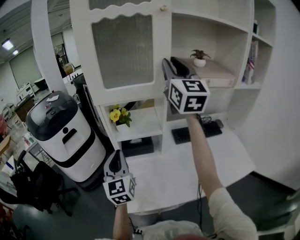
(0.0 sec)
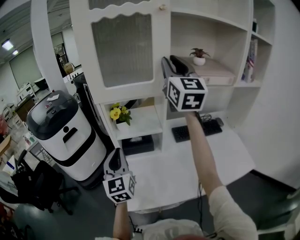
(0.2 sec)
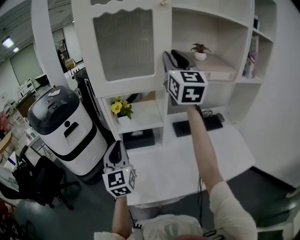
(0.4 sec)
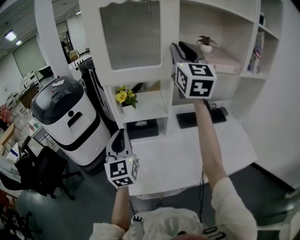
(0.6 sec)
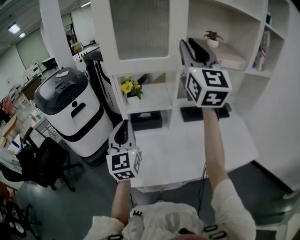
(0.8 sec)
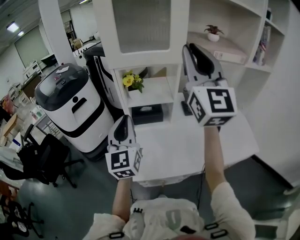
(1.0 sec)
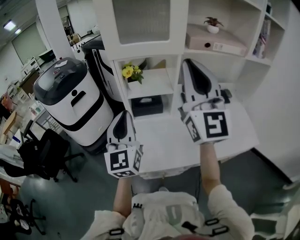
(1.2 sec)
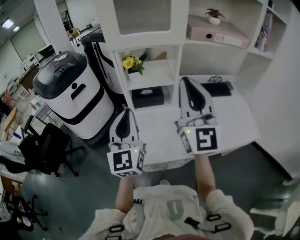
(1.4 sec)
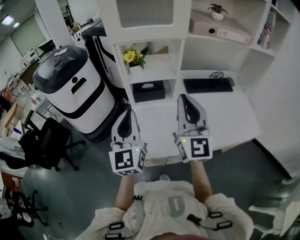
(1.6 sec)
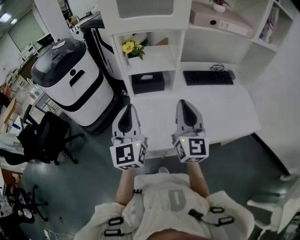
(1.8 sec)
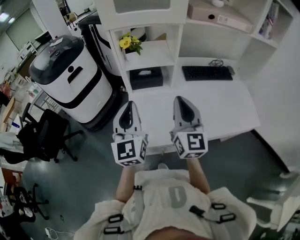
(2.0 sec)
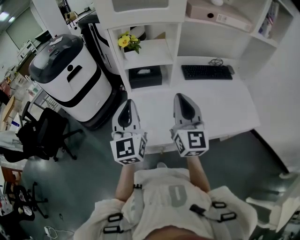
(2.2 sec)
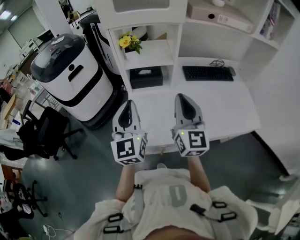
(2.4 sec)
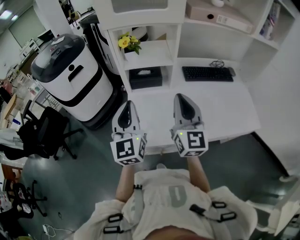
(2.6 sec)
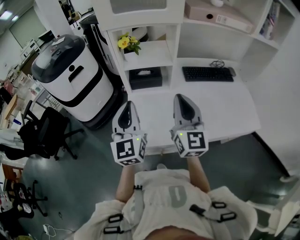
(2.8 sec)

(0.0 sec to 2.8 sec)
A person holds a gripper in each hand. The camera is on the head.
0.0 sec - 1.4 sec: The left gripper travels backward by approximately 10 cm. Meanwhile the right gripper goes some 25 cm backward and downward.
1.4 sec - 2.8 sec: The left gripper moves downward, approximately 5 cm. Meanwhile the right gripper is displaced downward by about 15 cm, and rotates roughly 20 degrees.

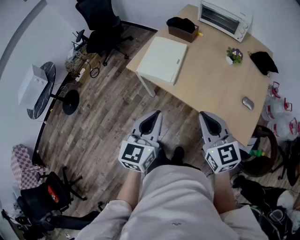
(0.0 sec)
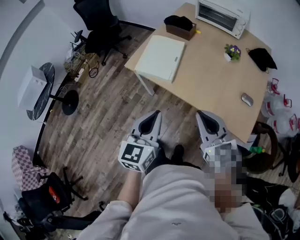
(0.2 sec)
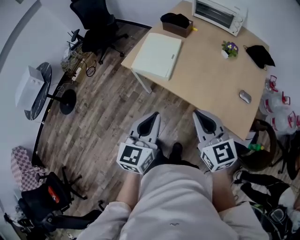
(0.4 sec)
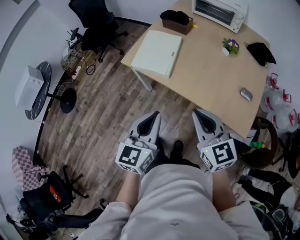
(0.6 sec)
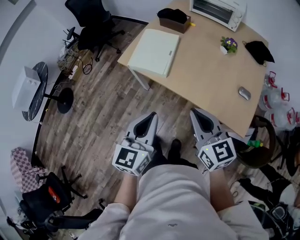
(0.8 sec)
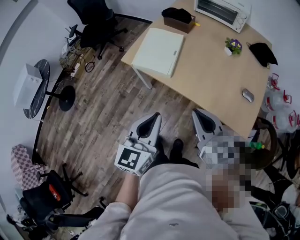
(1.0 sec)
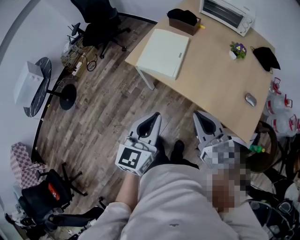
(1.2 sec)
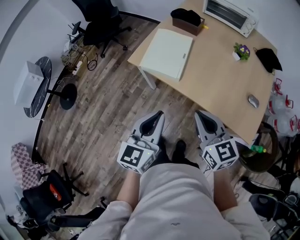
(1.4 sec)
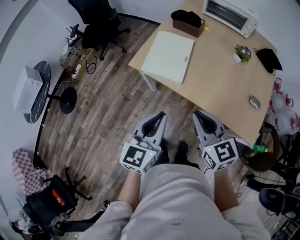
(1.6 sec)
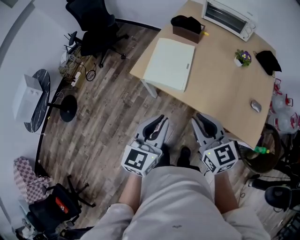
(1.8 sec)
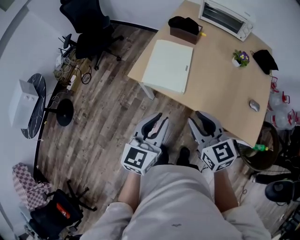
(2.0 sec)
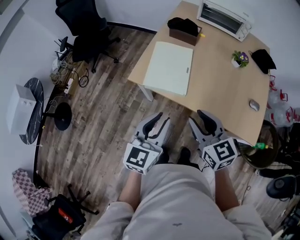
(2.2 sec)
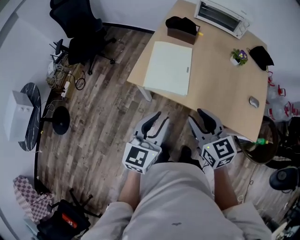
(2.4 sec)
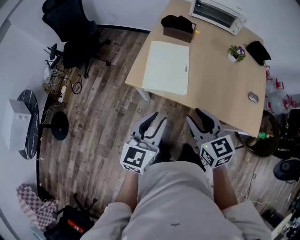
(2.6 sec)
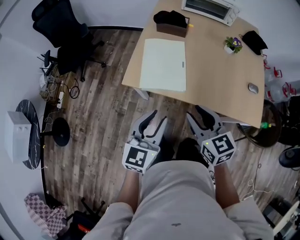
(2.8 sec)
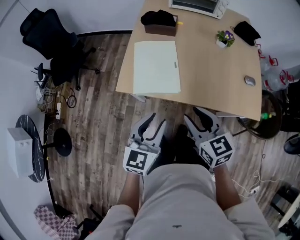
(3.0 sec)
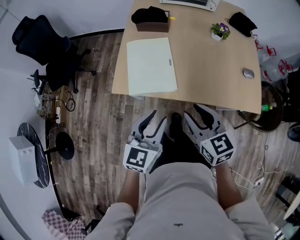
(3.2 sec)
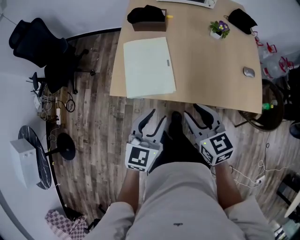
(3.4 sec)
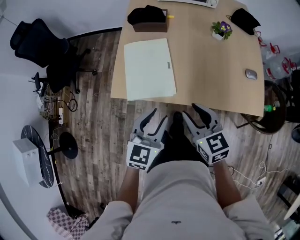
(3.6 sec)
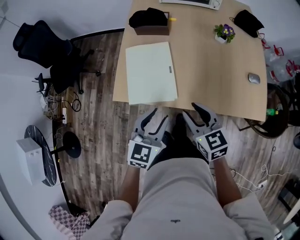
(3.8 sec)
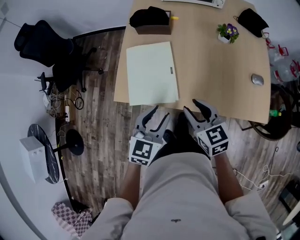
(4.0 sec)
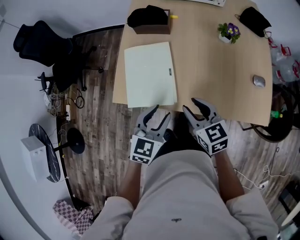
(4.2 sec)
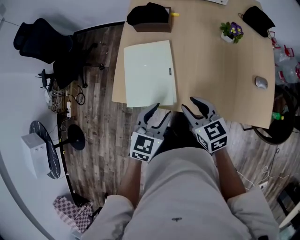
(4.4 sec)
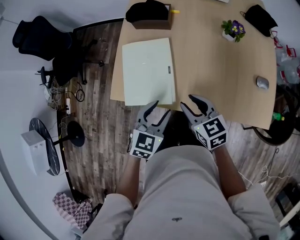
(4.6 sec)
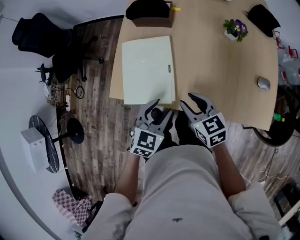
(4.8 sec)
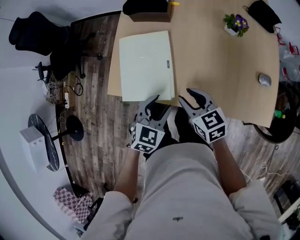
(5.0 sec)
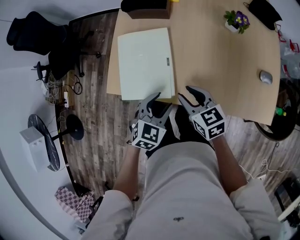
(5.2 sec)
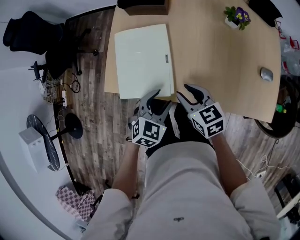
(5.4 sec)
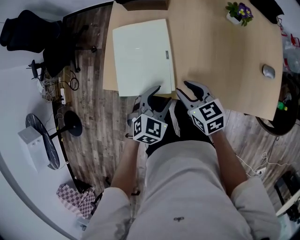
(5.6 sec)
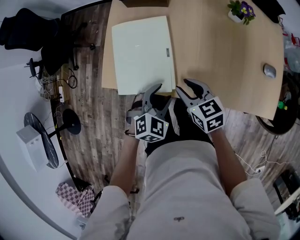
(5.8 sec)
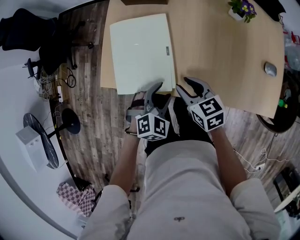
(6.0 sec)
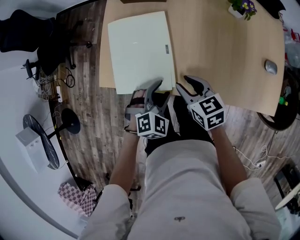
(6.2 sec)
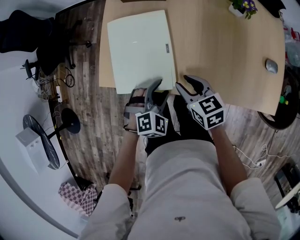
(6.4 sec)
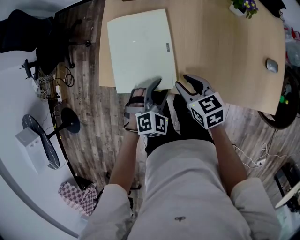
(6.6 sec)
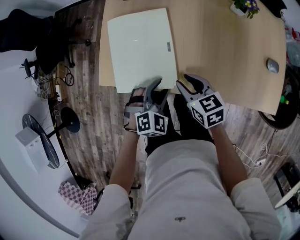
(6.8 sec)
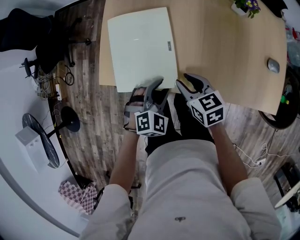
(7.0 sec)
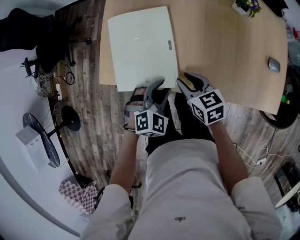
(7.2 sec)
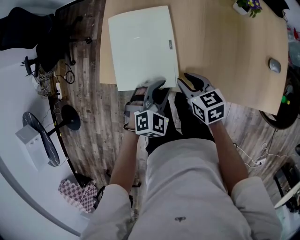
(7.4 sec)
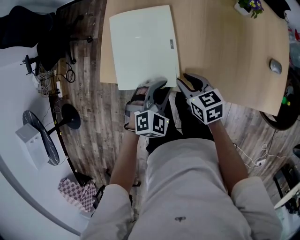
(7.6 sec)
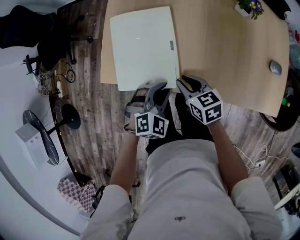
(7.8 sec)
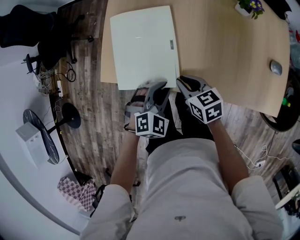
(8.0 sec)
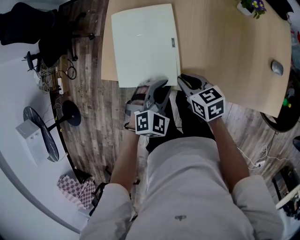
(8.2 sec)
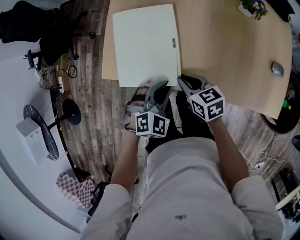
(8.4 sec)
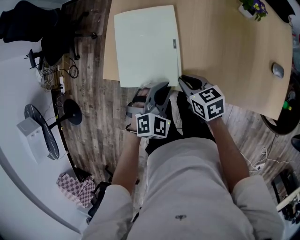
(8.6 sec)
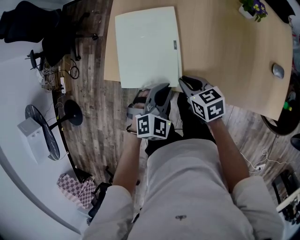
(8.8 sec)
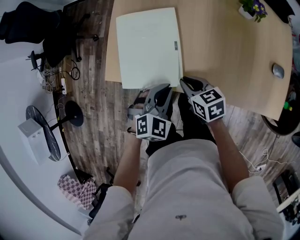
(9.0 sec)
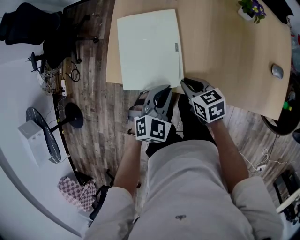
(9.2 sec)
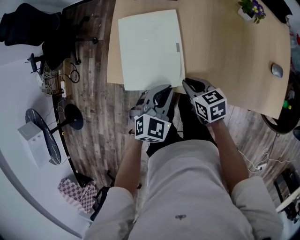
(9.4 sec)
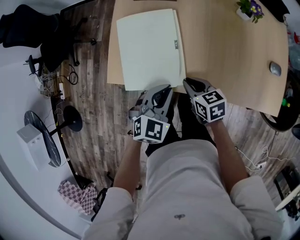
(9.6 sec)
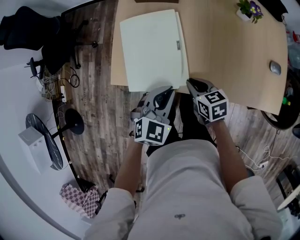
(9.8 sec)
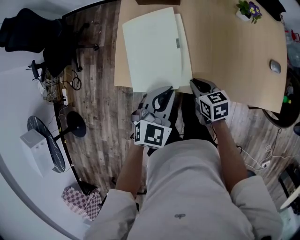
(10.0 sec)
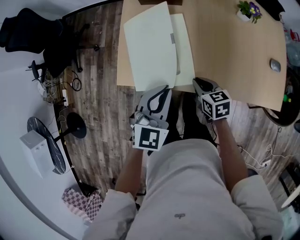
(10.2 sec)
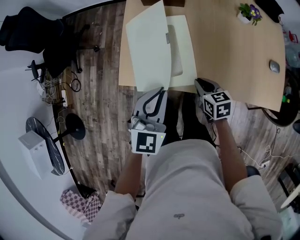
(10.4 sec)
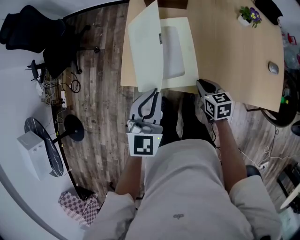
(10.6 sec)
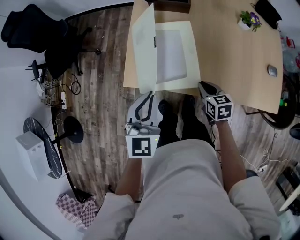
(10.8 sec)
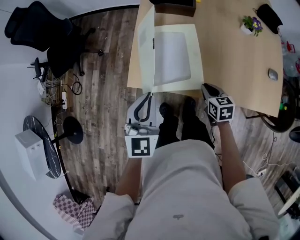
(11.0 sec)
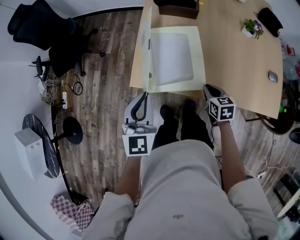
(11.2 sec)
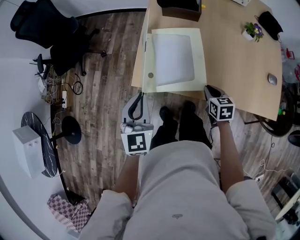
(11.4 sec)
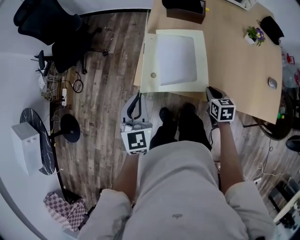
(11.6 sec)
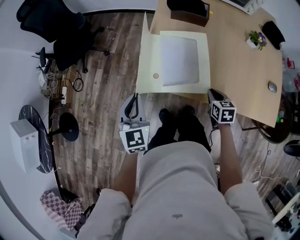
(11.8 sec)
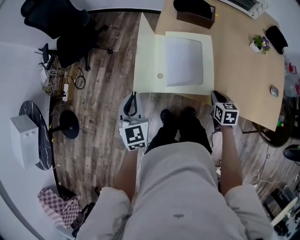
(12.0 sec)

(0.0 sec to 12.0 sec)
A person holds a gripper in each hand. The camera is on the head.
0.0 sec - 1.6 sec: The right gripper shifts about 10 cm to the left. The left gripper shifts by roughly 5 cm.
1.6 sec - 3.0 sec: The left gripper heads forward, to the left and downward, covering approximately 15 cm, turns by about 20 degrees, and opens. Meanwhile the right gripper moves to the left and forward, some 10 cm, turns by some 20 degrees, and opens up.
3.0 sec - 4.4 sec: The left gripper goes approximately 15 cm forward, to the right and downward. The right gripper travels forward and downward by about 15 cm.
4.4 sec - 6.0 sec: The grippers both shift downward by some 10 cm. The left gripper changes its angle by about 40 degrees.
6.0 sec - 7.6 sec: The left gripper closes up.
7.6 sec - 9.0 sec: There are only small adjustments of the grippers.
9.0 sec - 10.4 sec: The left gripper goes some 15 cm upward and to the left, and turns by approximately 30 degrees.
10.4 sec - 12.0 sec: The left gripper is displaced to the left by about 20 cm, and changes its angle by approximately 40 degrees.

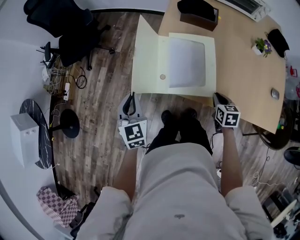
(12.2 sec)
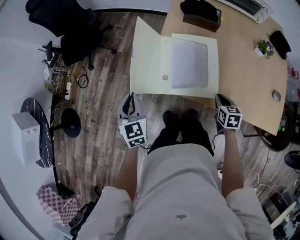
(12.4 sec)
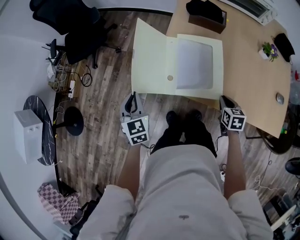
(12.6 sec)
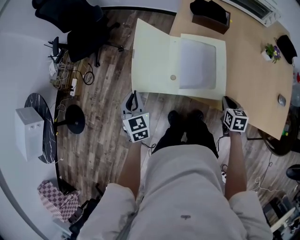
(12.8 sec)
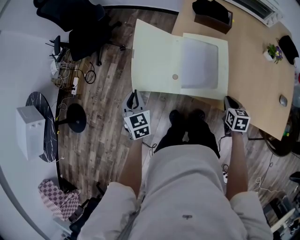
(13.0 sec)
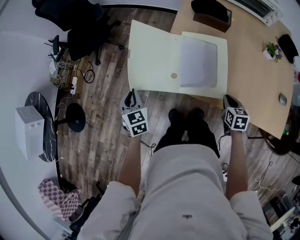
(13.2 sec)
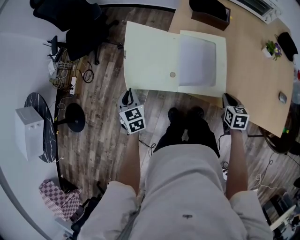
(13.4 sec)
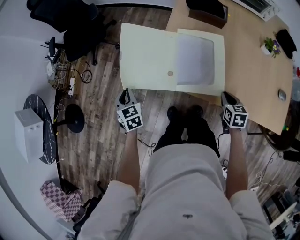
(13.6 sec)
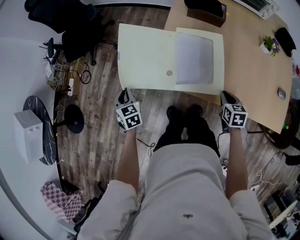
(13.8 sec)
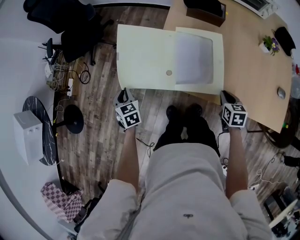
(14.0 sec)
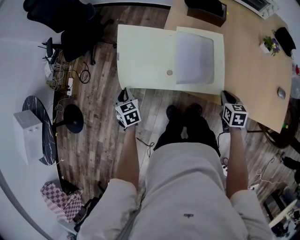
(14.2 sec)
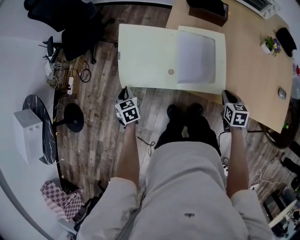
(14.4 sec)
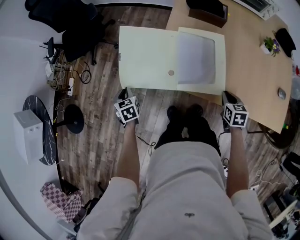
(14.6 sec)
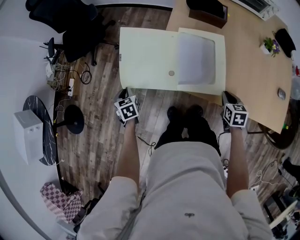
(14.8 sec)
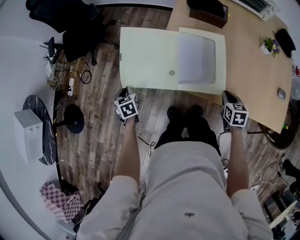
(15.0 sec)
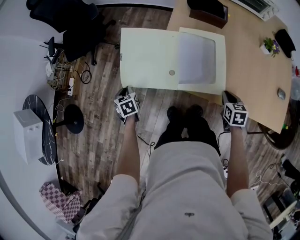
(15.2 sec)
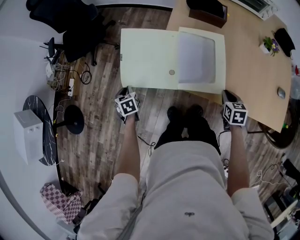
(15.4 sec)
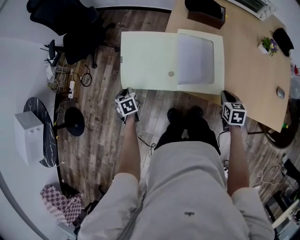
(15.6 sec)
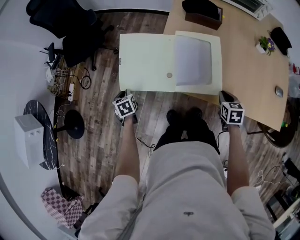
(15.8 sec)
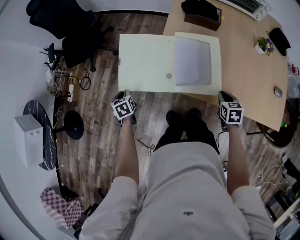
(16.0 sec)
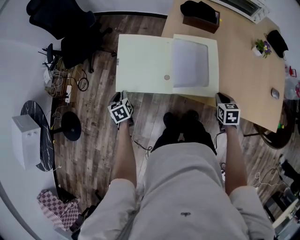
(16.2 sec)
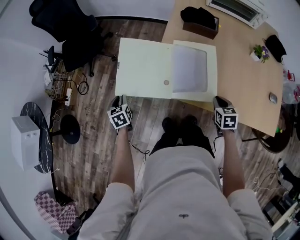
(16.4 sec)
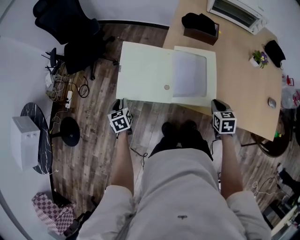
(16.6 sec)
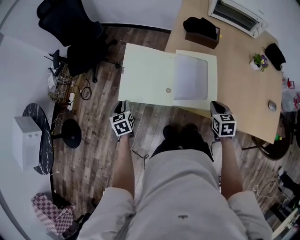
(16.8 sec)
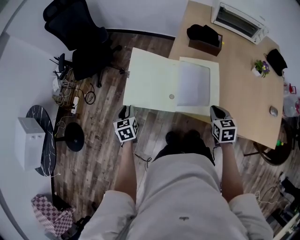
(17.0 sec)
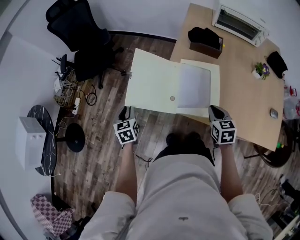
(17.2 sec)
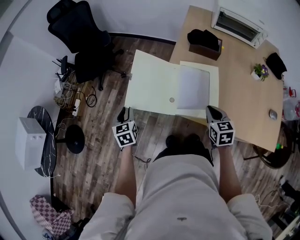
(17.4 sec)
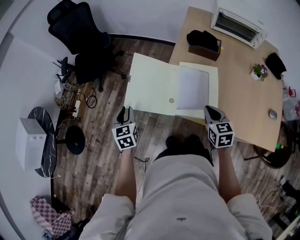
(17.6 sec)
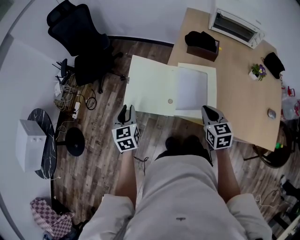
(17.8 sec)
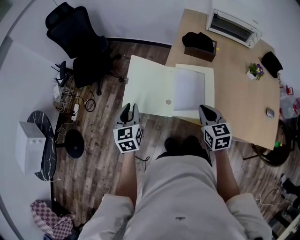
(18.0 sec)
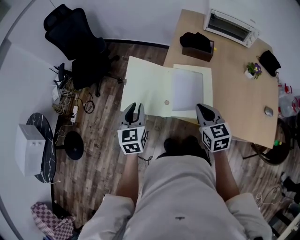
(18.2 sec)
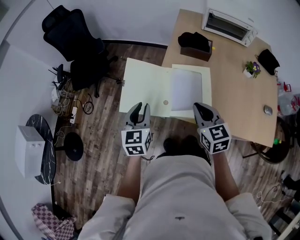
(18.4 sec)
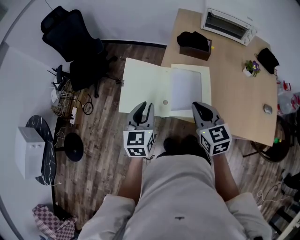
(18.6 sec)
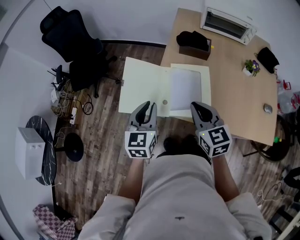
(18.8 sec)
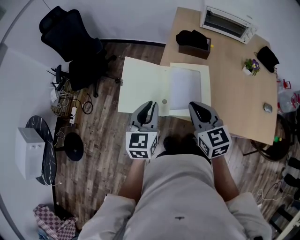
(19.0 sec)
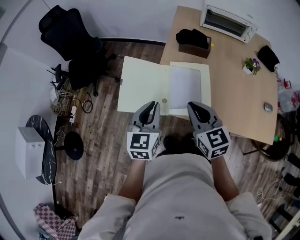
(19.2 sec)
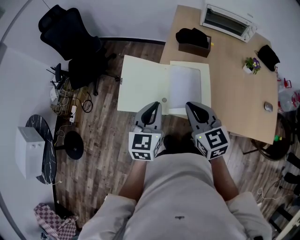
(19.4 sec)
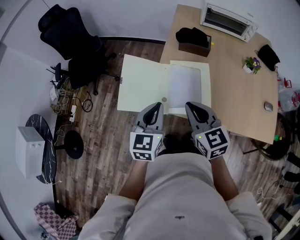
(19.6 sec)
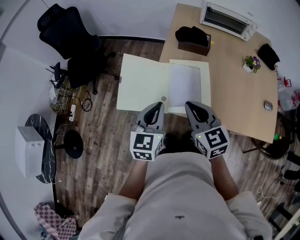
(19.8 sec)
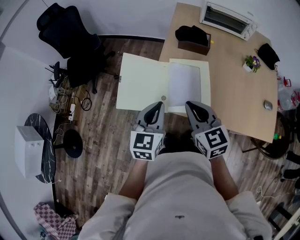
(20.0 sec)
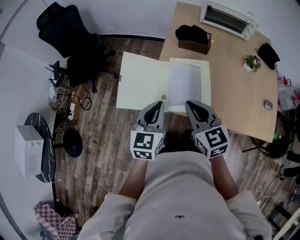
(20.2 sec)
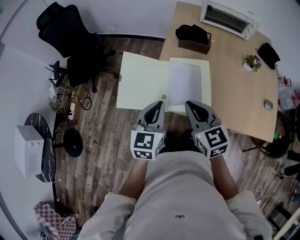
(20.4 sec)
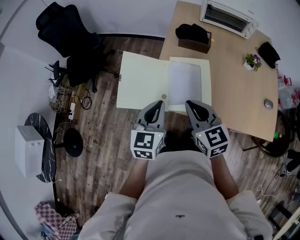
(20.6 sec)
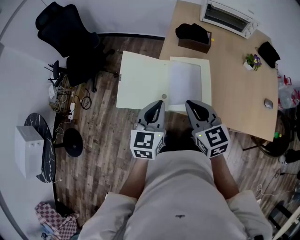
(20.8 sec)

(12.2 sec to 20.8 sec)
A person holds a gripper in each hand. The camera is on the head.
12.2 sec - 13.6 sec: The left gripper is displaced downward and to the left by some 15 cm.
13.6 sec - 15.0 sec: The left gripper goes approximately 5 cm downward.
15.0 sec - 16.6 sec: The grippers stay close to where they were, moving slightly.
16.6 sec - 18.0 sec: The right gripper shifts about 15 cm upward and to the left, and swivels some 20 degrees. The left gripper moves upward and to the right, roughly 20 cm, and turns by approximately 20 degrees.
18.0 sec - 19.4 sec: The right gripper is displaced upward and to the left by some 10 cm, while the left gripper is displaced to the right and upward by roughly 15 cm, and turns by about 20 degrees.
19.4 sec - 20.8 sec: There are only small adjustments of the grippers.
